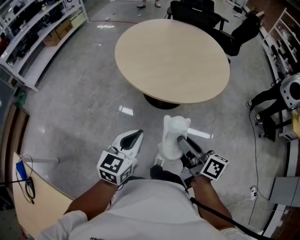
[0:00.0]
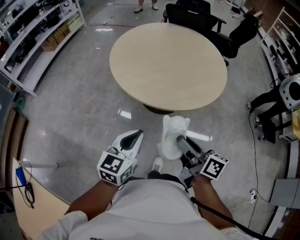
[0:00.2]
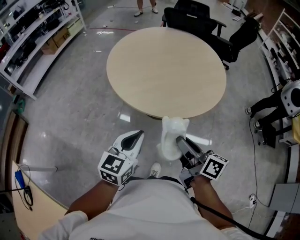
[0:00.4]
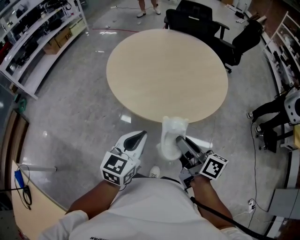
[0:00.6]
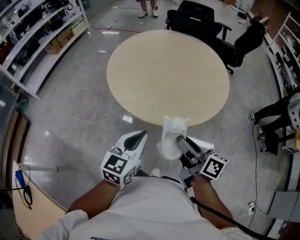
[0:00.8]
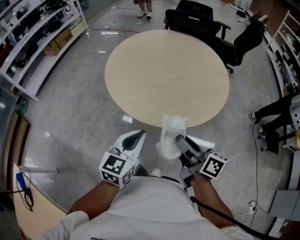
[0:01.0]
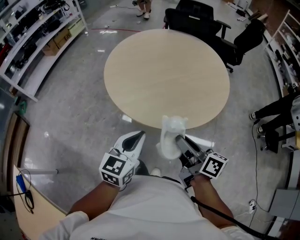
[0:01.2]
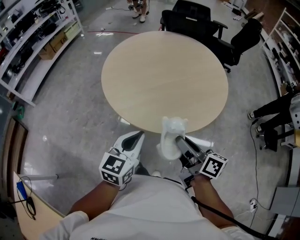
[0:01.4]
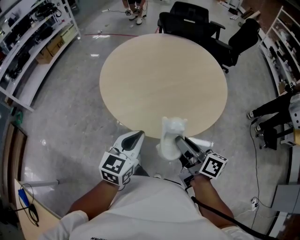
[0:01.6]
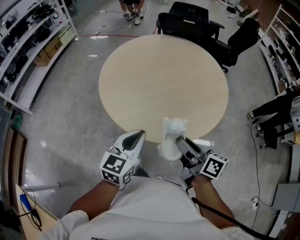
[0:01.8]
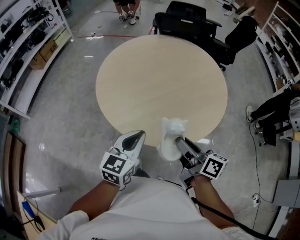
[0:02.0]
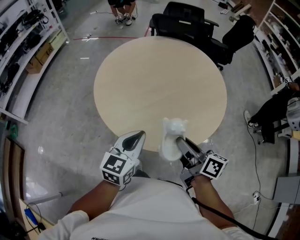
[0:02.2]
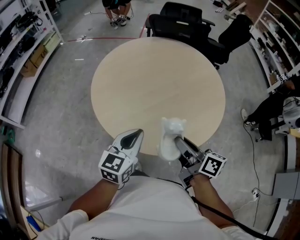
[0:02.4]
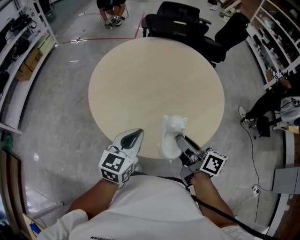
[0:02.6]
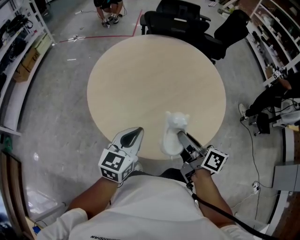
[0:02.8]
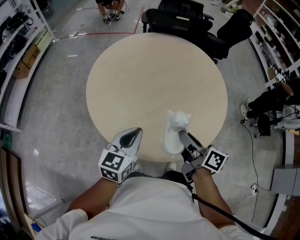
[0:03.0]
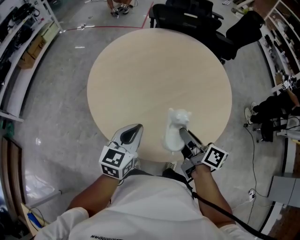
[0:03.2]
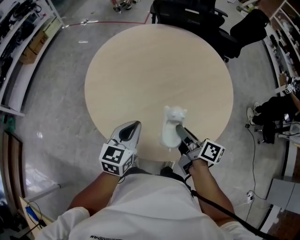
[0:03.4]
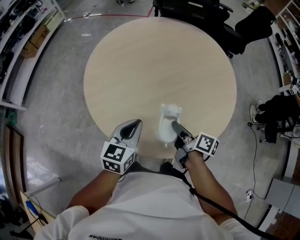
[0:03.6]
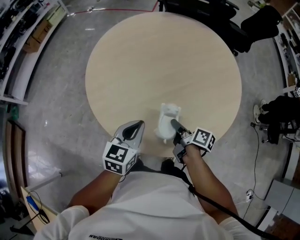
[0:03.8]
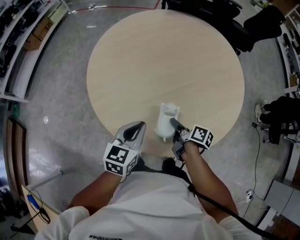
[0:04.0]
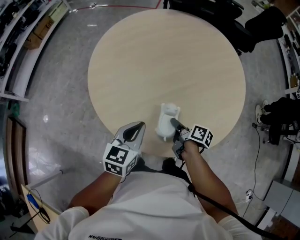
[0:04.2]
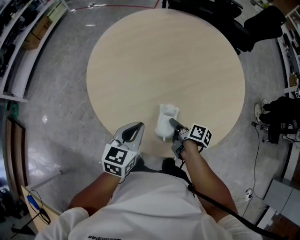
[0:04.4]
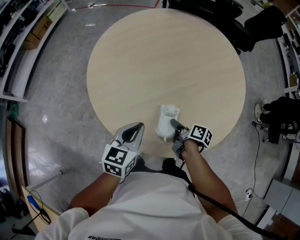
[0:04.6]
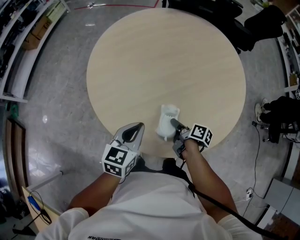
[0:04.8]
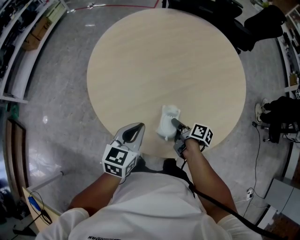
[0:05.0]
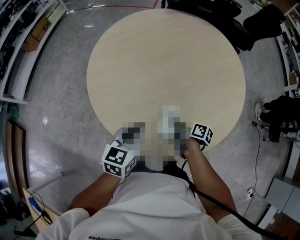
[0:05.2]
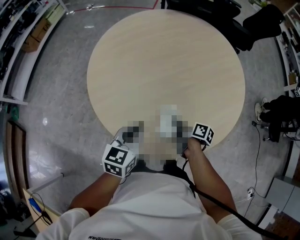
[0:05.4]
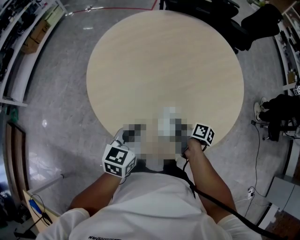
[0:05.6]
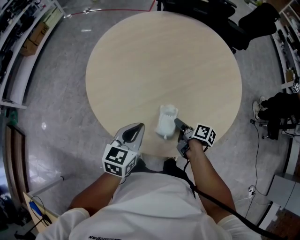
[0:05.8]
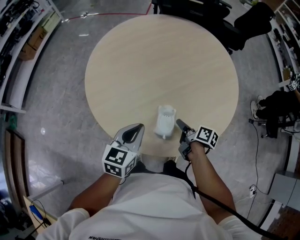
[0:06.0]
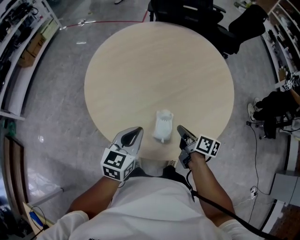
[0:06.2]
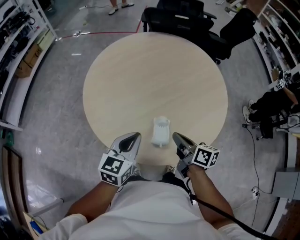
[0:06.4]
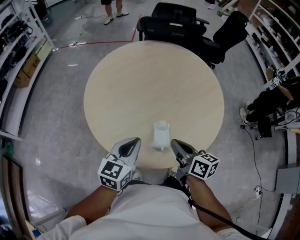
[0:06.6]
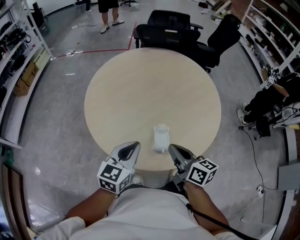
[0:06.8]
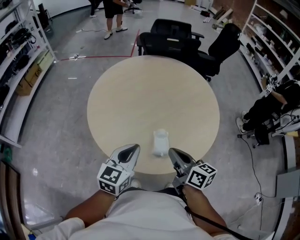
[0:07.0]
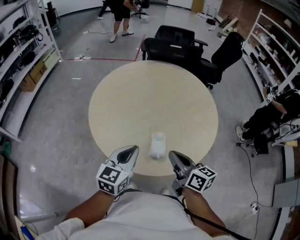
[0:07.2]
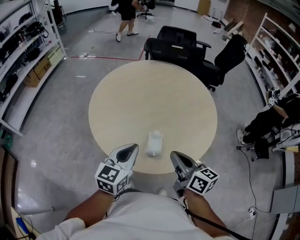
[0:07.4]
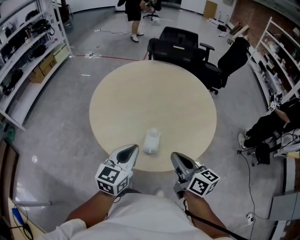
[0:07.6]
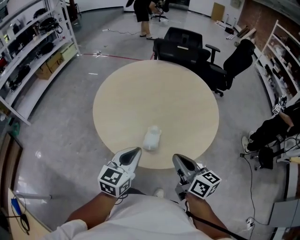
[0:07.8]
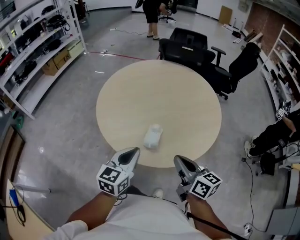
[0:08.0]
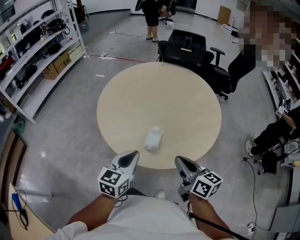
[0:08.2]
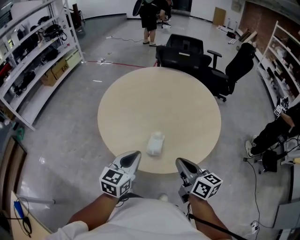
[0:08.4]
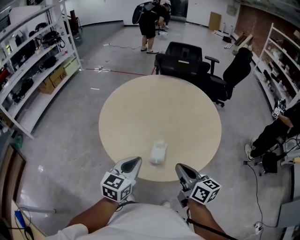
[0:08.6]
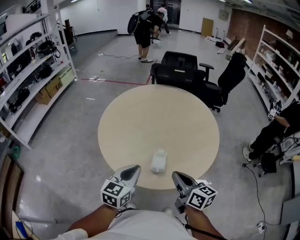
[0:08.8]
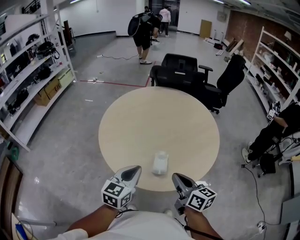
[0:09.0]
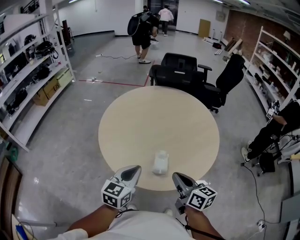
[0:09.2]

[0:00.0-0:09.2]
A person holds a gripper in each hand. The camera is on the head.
0.0 to 1.6 s: The two grippers go approximately 15 cm forward.
1.6 to 3.0 s: The two grippers go some 15 cm forward.
3.0 to 4.6 s: The right gripper is displaced downward by roughly 20 cm, and rotates roughly 30 degrees. The left gripper heads downward, covering some 5 cm.
4.6 to 6.2 s: The right gripper shifts roughly 10 cm upward, and closes its fingers.
6.2 to 7.6 s: The right gripper moves upward and backward, roughly 20 cm, and changes its angle by approximately 30 degrees; the left gripper travels upward by approximately 5 cm.
7.6 to 9.2 s: The grippers make only small movements.

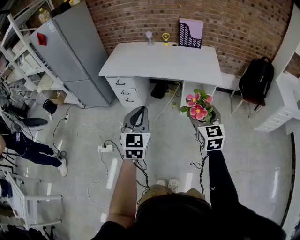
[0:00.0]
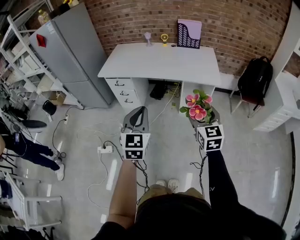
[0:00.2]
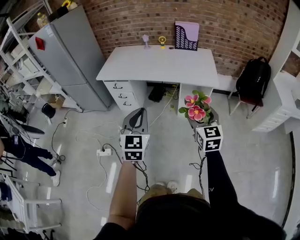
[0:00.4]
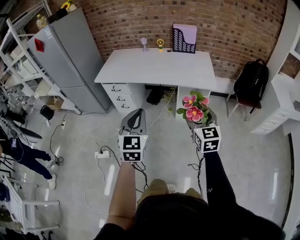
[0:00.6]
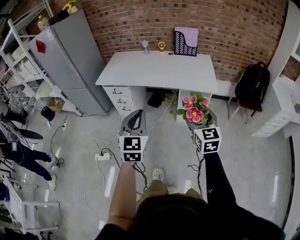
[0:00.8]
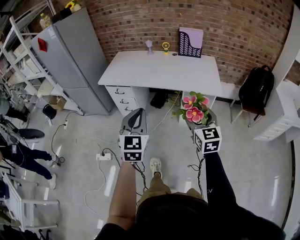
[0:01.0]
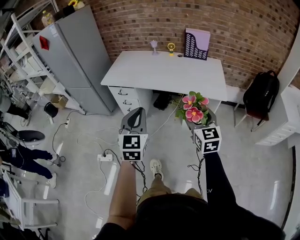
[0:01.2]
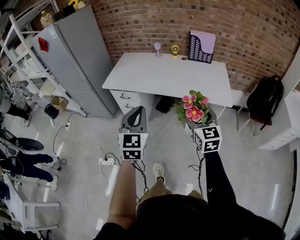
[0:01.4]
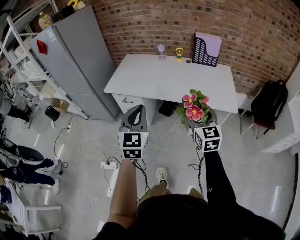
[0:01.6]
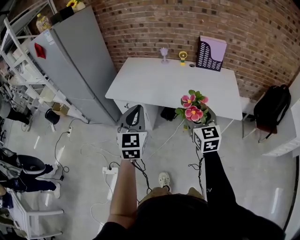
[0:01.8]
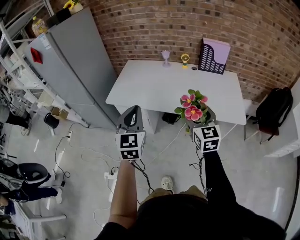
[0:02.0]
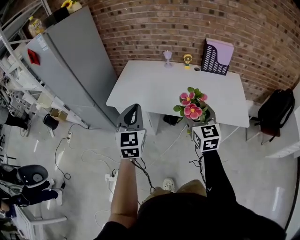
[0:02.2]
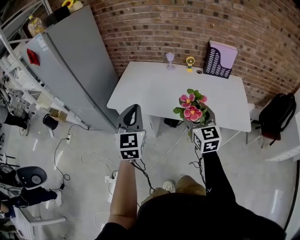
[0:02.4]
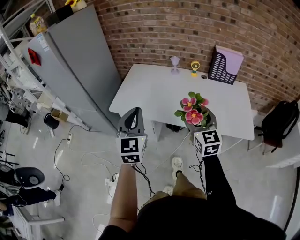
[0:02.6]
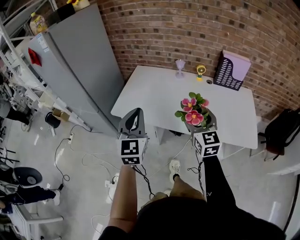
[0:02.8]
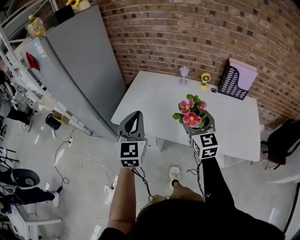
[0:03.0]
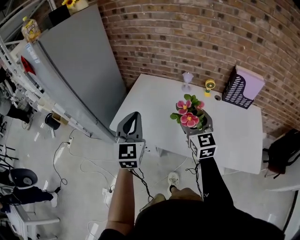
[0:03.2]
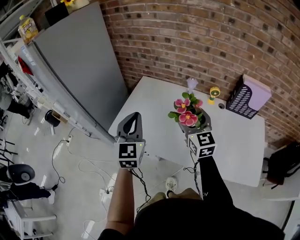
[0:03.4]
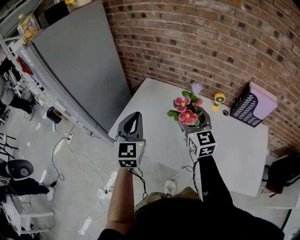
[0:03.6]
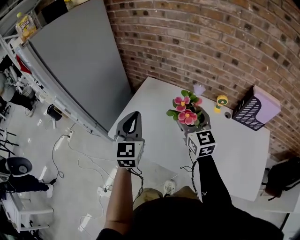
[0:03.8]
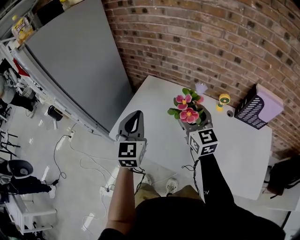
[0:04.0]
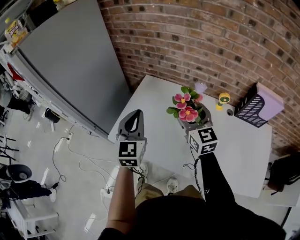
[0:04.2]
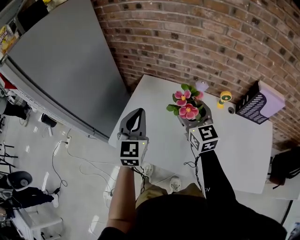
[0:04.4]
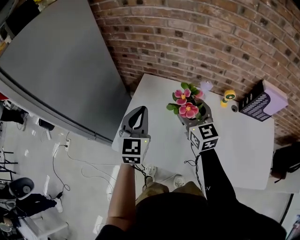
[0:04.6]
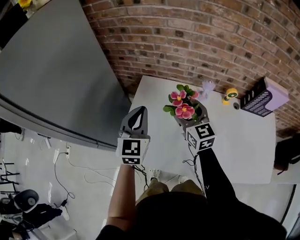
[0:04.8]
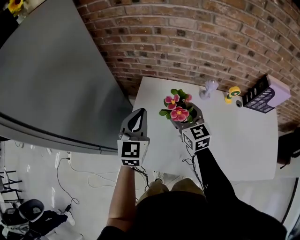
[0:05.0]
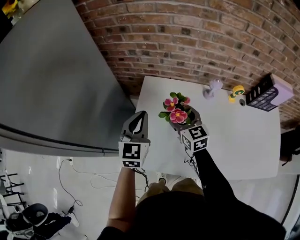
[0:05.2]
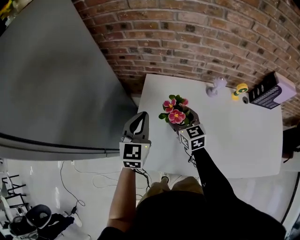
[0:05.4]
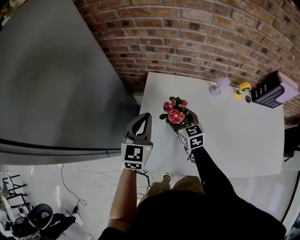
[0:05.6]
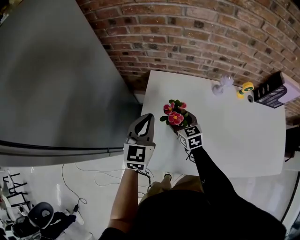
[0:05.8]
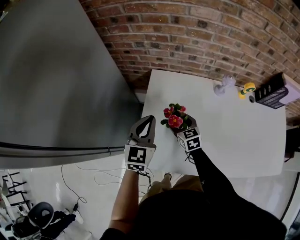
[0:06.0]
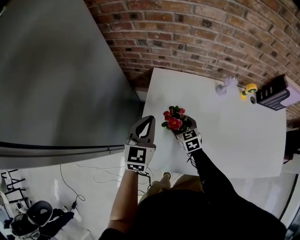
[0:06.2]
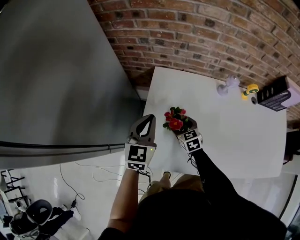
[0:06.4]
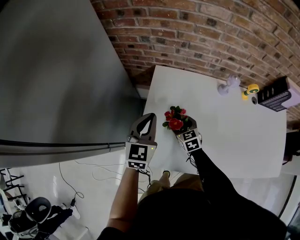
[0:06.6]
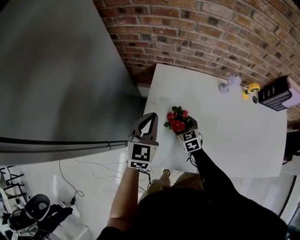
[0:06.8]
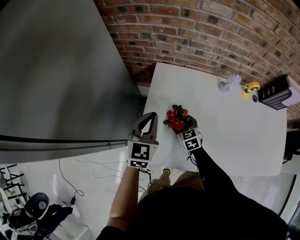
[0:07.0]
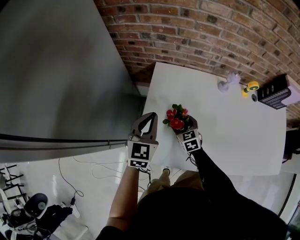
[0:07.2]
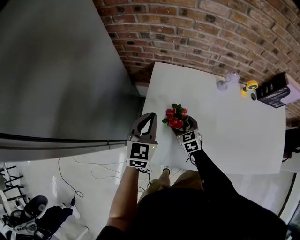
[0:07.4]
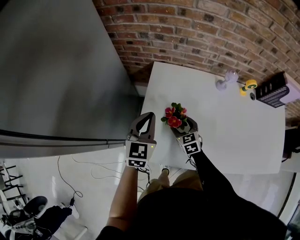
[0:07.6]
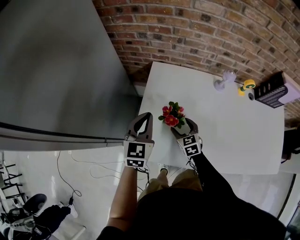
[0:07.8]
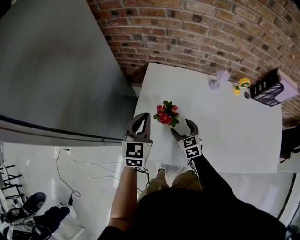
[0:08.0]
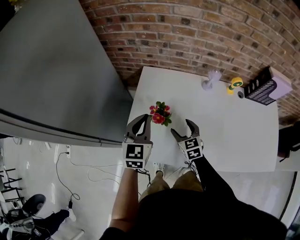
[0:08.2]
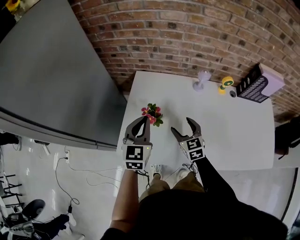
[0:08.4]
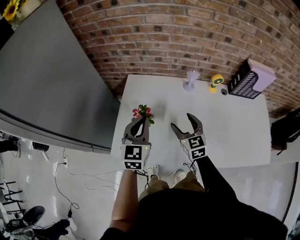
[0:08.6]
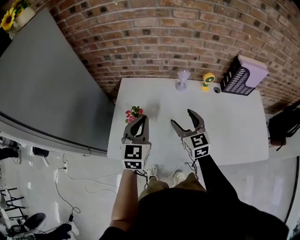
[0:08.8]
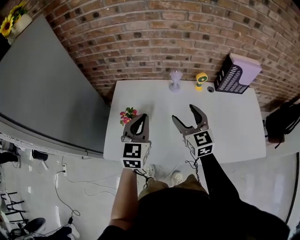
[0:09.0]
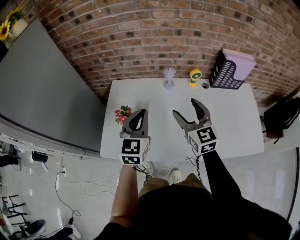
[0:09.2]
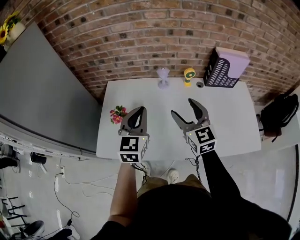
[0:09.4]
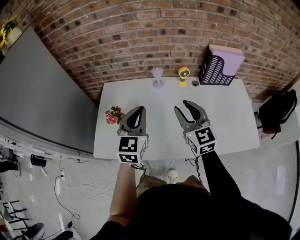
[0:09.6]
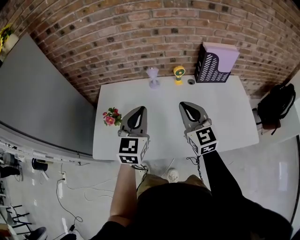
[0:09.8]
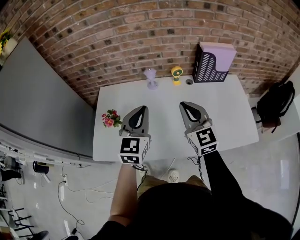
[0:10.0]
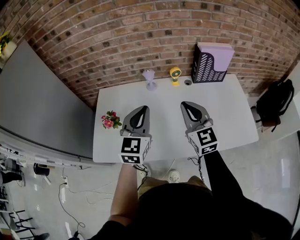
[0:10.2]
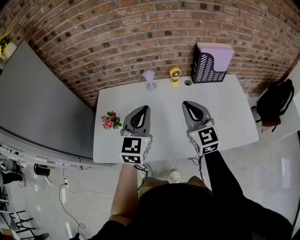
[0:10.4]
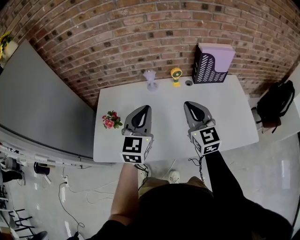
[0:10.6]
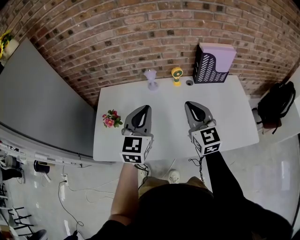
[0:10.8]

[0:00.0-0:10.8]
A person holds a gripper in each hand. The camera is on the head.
0.0 to 1.6 s: The two grippers go some 20 cm forward.
1.6 to 3.0 s: Both grippers move forward, about 35 cm.
3.0 to 4.6 s: The grippers both shift forward by approximately 35 cm.
4.6 to 6.2 s: The right gripper moves downward and to the left, about 30 cm, and points its fingers some 30 degrees further downward, while the left gripper travels downward, to the left and forward by roughly 15 cm.
6.2 to 7.8 s: The right gripper shifts roughly 5 cm backward.
7.8 to 9.2 s: The left gripper travels to the right and upward by roughly 25 cm. Meanwhile the right gripper shifts roughly 40 cm upward and to the right, and tips its fingers upward by approximately 30 degrees.
9.2 to 10.8 s: Both grippers move to the right, about 10 cm. The right gripper closes up.

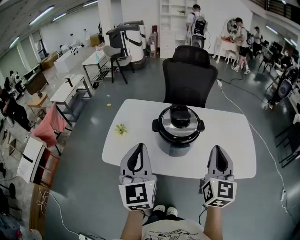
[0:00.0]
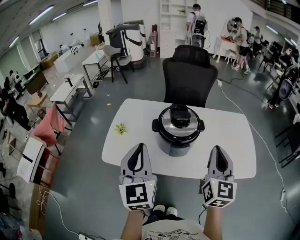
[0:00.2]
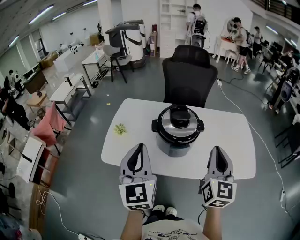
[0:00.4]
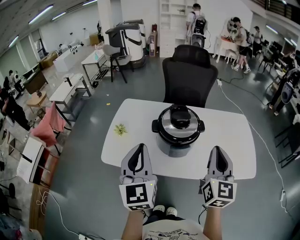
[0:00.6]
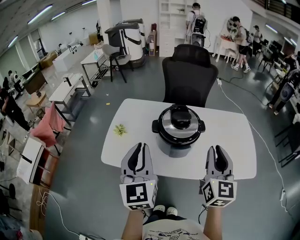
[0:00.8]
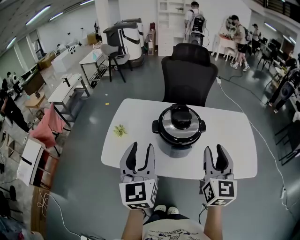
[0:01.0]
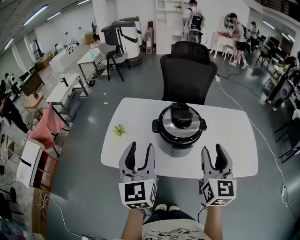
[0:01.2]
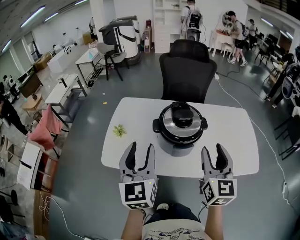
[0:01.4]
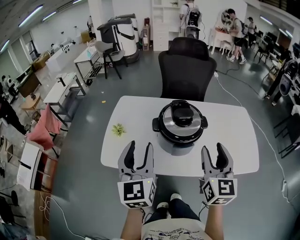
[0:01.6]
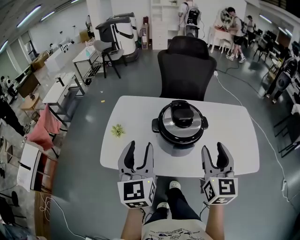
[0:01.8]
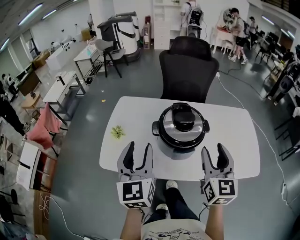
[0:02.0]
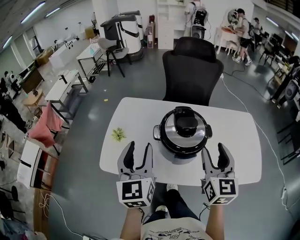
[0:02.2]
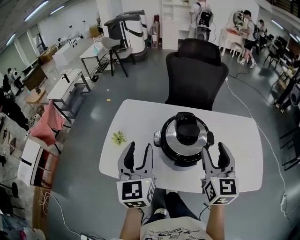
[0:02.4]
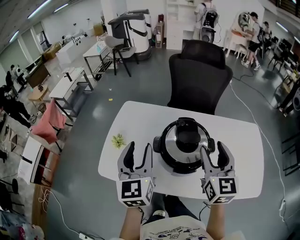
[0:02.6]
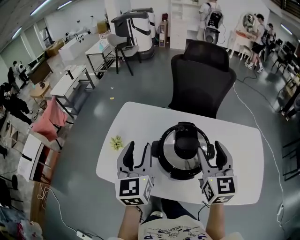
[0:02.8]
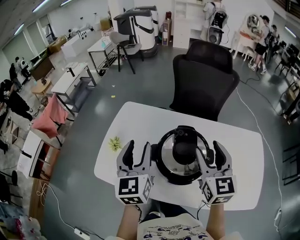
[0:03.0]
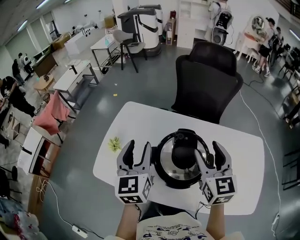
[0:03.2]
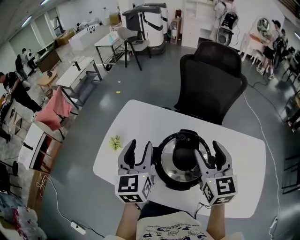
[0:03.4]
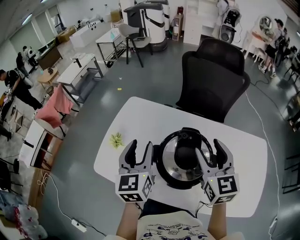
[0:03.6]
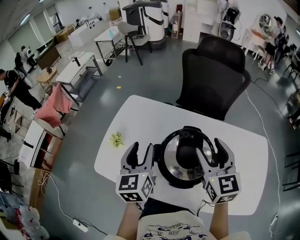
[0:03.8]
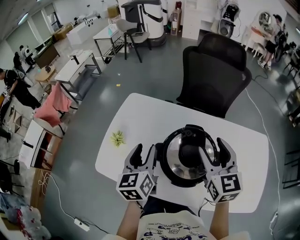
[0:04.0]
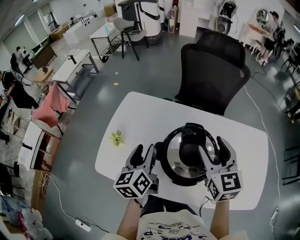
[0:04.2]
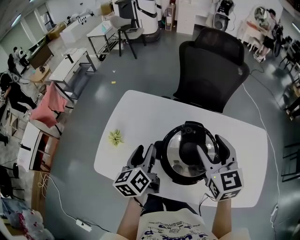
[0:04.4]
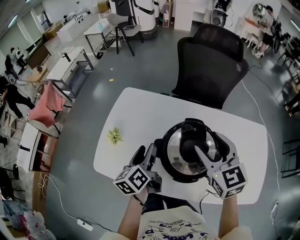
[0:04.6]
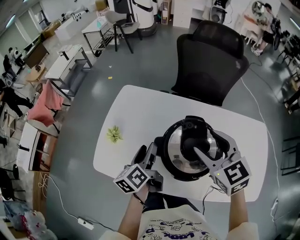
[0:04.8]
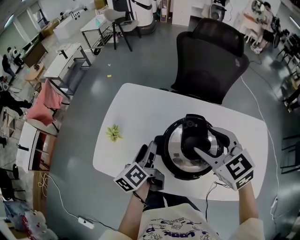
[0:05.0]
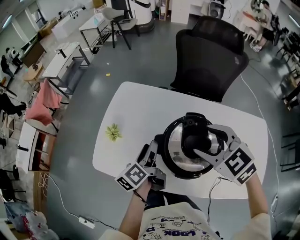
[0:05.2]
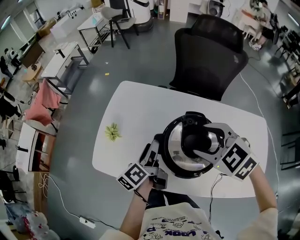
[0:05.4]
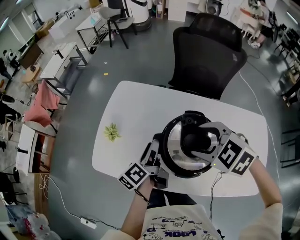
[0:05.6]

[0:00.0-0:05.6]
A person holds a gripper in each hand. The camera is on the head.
0.0 to 1.4 s: The right gripper moves about 5 cm, and opens; the left gripper moves forward, approximately 5 cm, and opens up.
1.4 to 2.8 s: The grippers both shift forward by about 20 cm.
2.8 to 4.2 s: The right gripper heads forward, covering roughly 10 cm. The left gripper heads downward and forward, covering about 10 cm, and changes its angle by about 30 degrees.
4.2 to 5.6 s: The left gripper travels downward by about 10 cm, and rotates about 40 degrees; the right gripper heads to the left, covering about 5 cm, and tilts its fingers roughly 40 degrees downward.
